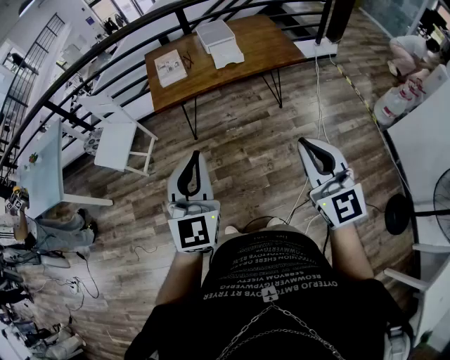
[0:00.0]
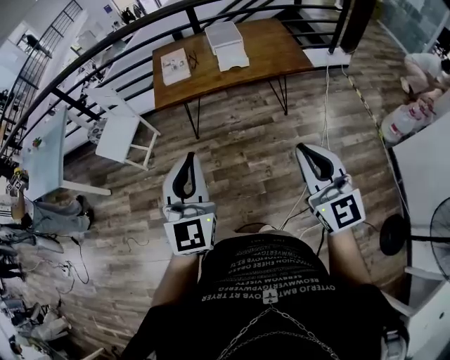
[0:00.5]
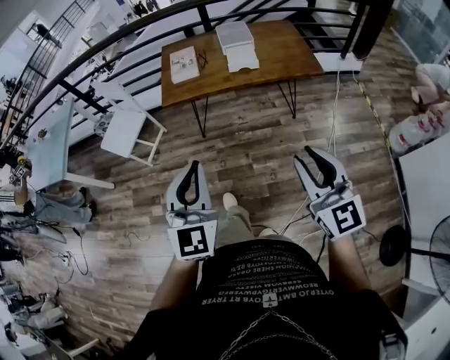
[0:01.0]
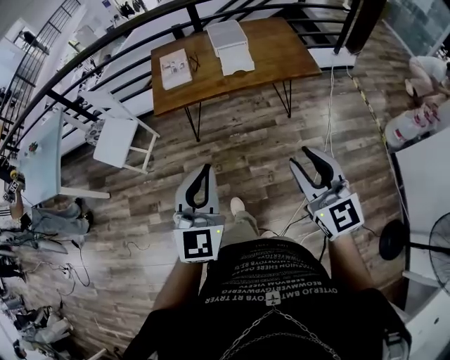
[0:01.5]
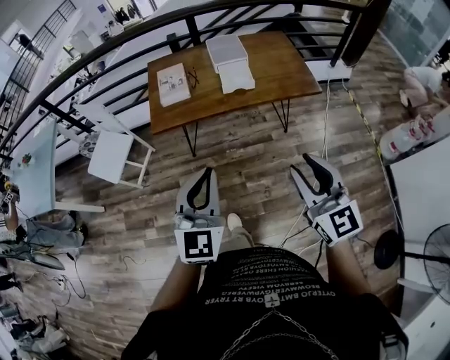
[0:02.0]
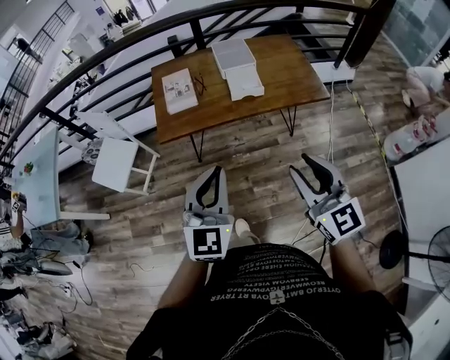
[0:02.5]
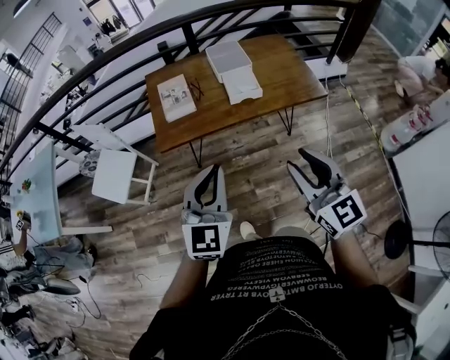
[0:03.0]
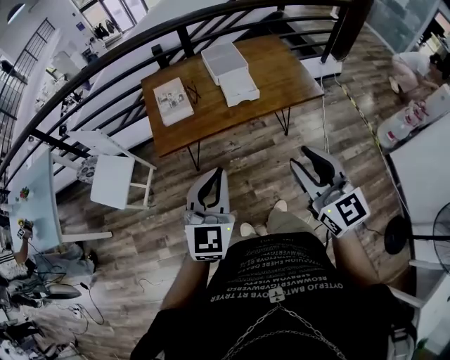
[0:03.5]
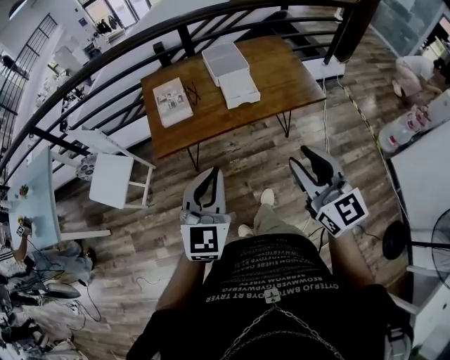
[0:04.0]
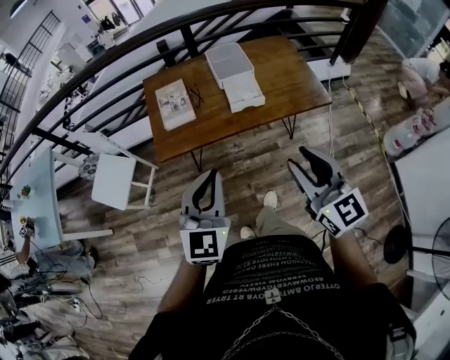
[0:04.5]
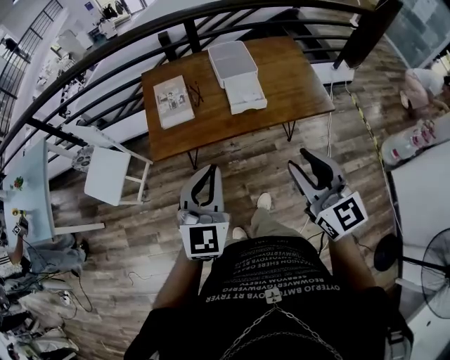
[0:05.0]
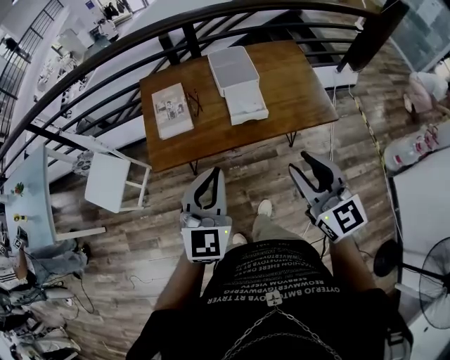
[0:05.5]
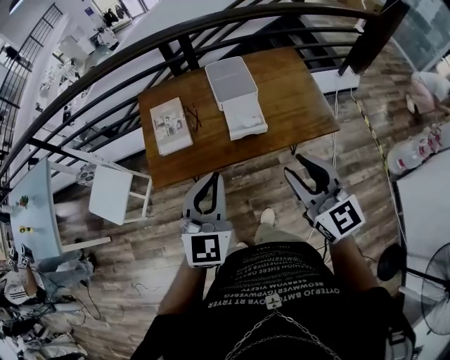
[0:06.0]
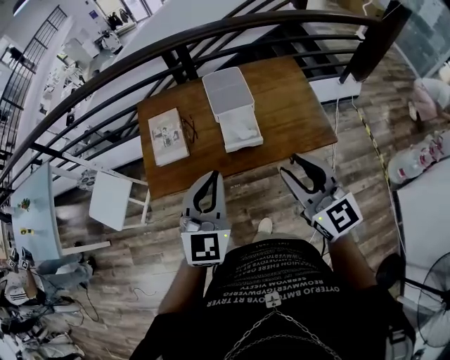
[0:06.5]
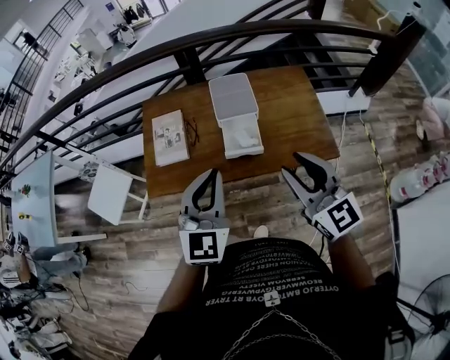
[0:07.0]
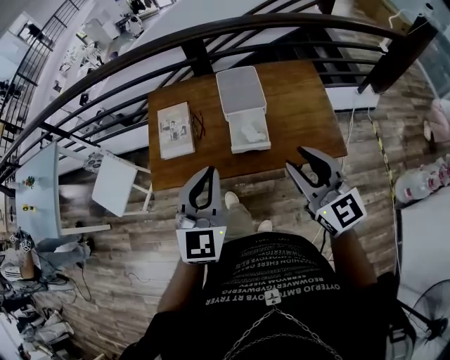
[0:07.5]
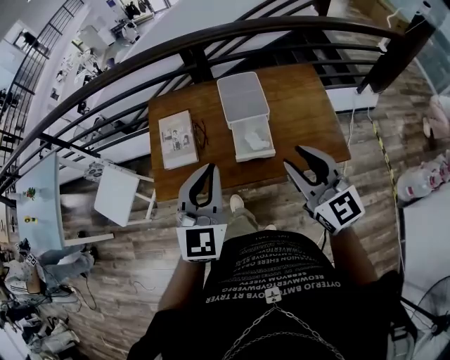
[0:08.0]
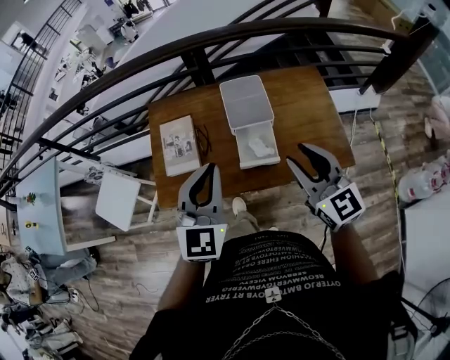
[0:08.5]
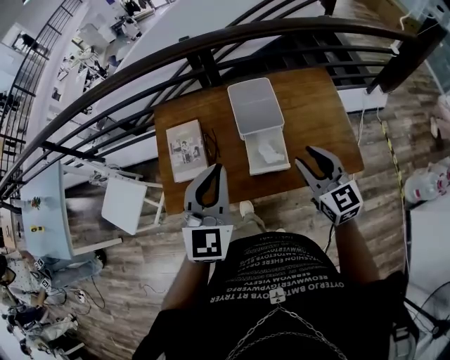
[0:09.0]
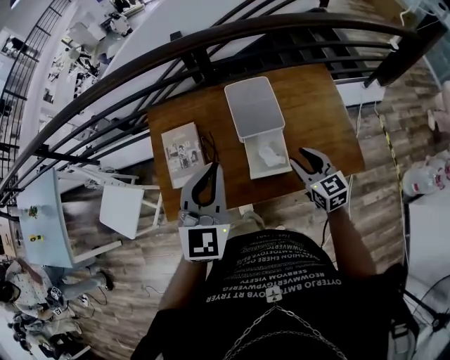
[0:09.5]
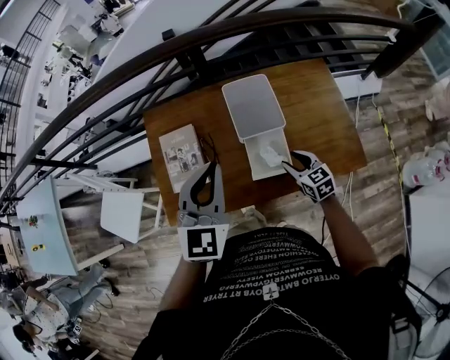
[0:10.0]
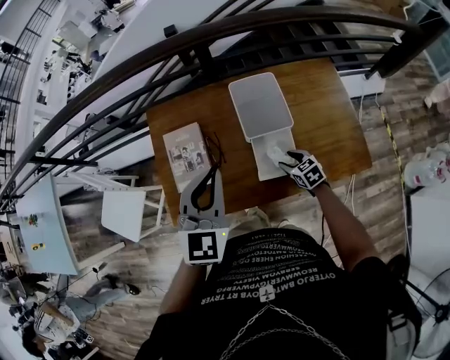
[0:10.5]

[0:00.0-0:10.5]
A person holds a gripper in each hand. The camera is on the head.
0.0 to 2.0 s: The left gripper heads forward and to the right, covering roughly 20 cm. Meanwhile the right gripper heads forward, covering approximately 20 cm, and opens its fingers.
2.0 to 4.0 s: The left gripper is displaced forward by approximately 10 cm, while the right gripper goes about 15 cm forward and to the left.
4.0 to 6.5 s: The right gripper goes about 25 cm forward, while the left gripper travels forward and to the right by approximately 25 cm.
6.5 to 8.5 s: Both grippers travel together forward, roughly 15 cm.
8.5 to 10.5 s: The right gripper heads downward, covering approximately 35 cm, and tilts its fingers roughly 40 degrees downward. The left gripper goes approximately 15 cm forward.

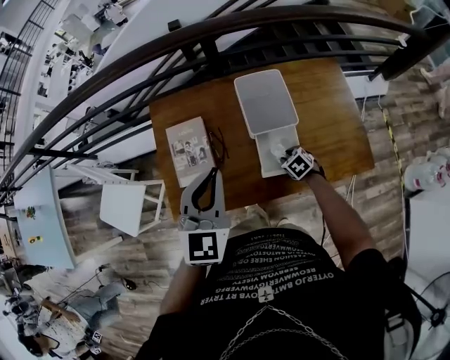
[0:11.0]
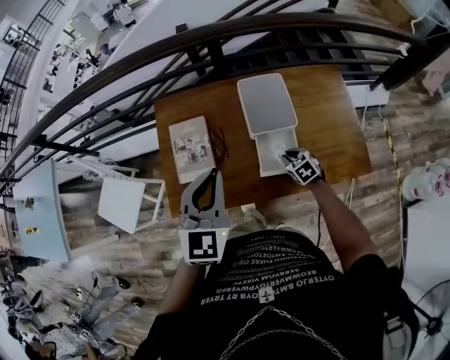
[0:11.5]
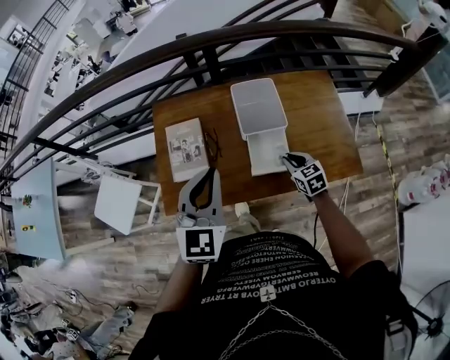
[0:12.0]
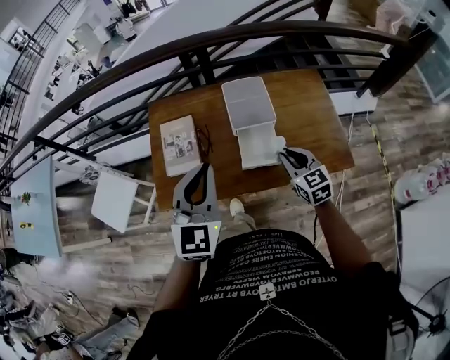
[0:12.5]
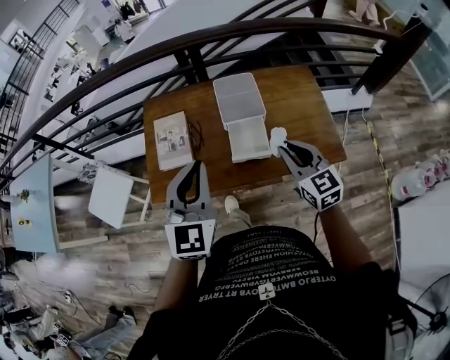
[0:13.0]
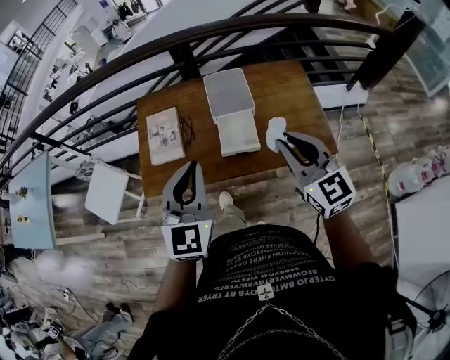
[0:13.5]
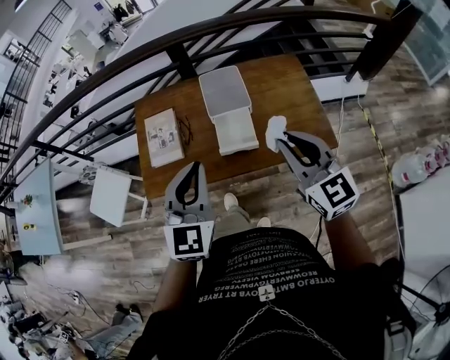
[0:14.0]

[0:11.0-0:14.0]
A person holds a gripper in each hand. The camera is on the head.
11.0 to 12.5 s: The right gripper goes approximately 25 cm upward and backward, and tips its fingers upward by some 40 degrees. Meanwhile the left gripper shifts about 10 cm backward.
12.5 to 14.0 s: The right gripper is displaced upward and backward by some 20 cm, and changes its angle by roughly 20 degrees; the left gripper moves backward and to the right, approximately 10 cm.

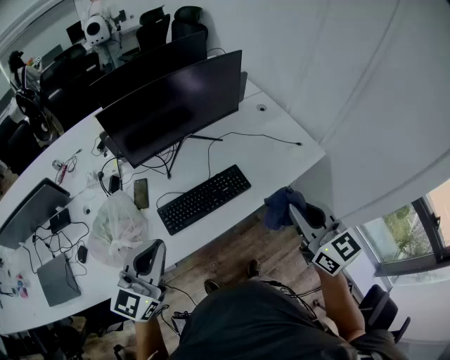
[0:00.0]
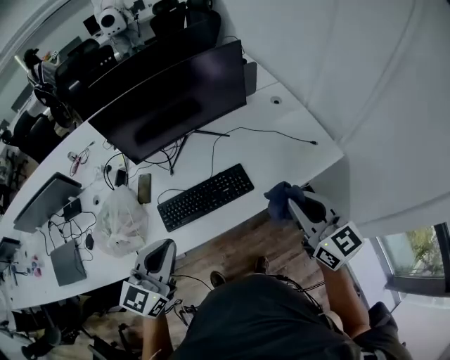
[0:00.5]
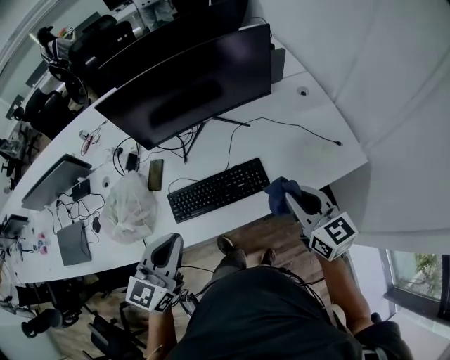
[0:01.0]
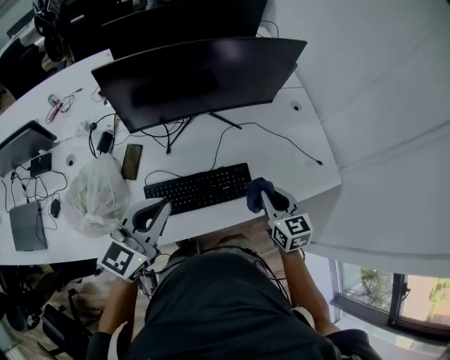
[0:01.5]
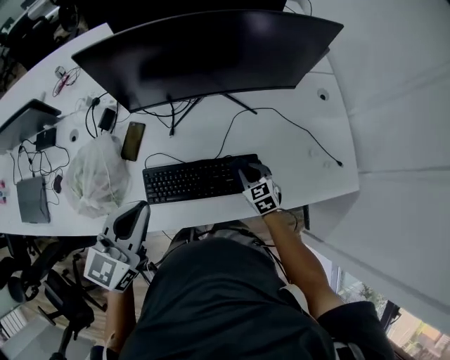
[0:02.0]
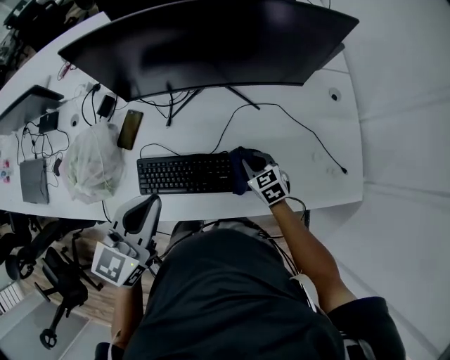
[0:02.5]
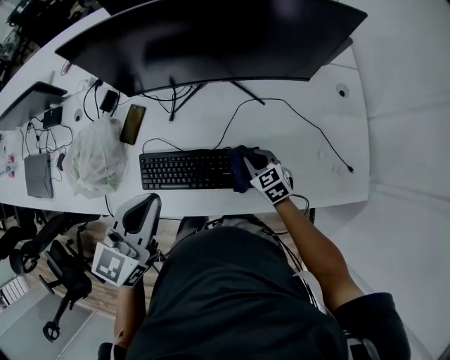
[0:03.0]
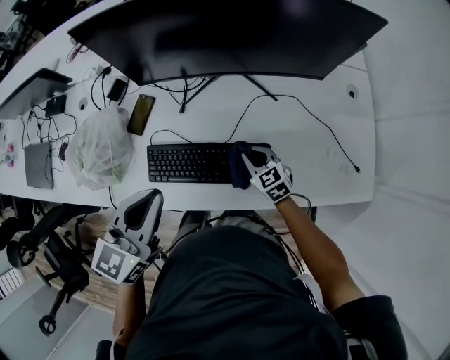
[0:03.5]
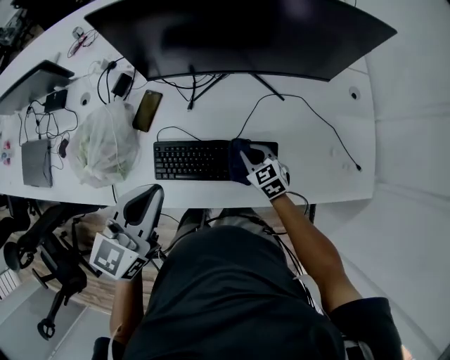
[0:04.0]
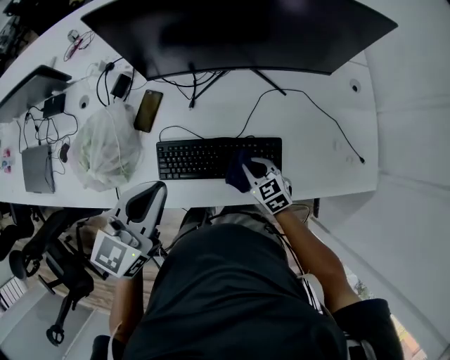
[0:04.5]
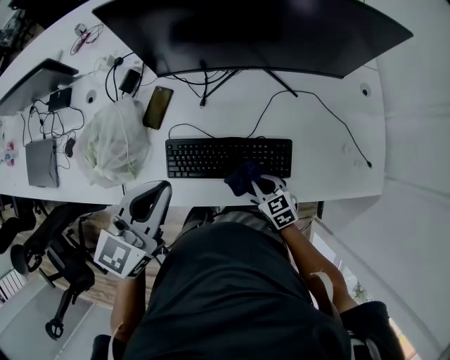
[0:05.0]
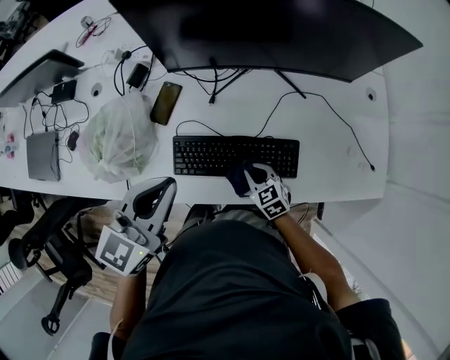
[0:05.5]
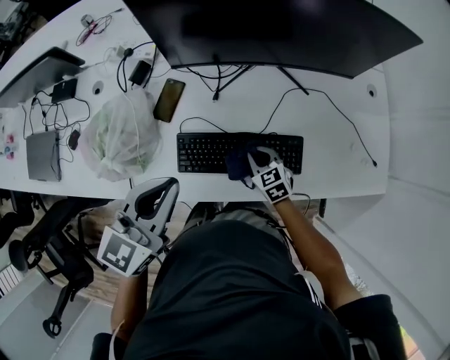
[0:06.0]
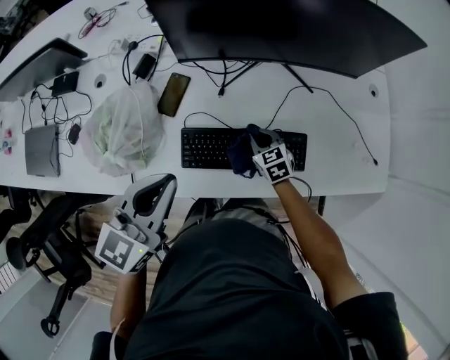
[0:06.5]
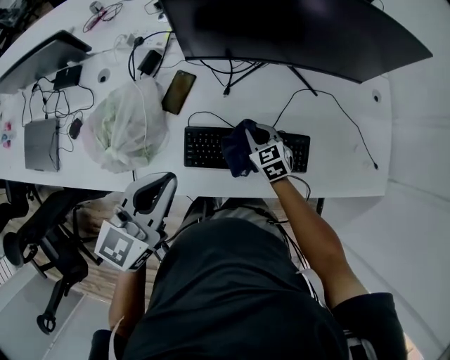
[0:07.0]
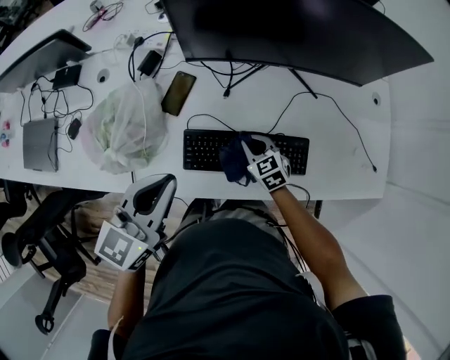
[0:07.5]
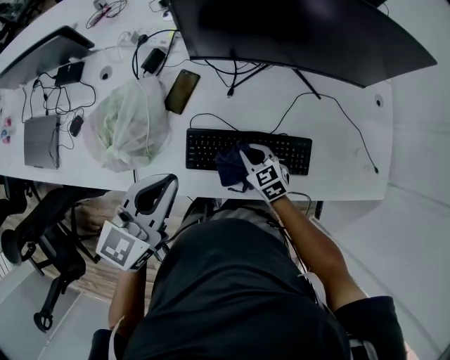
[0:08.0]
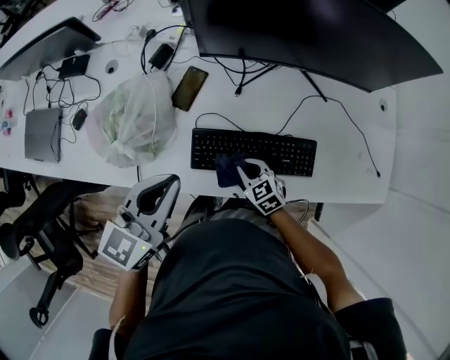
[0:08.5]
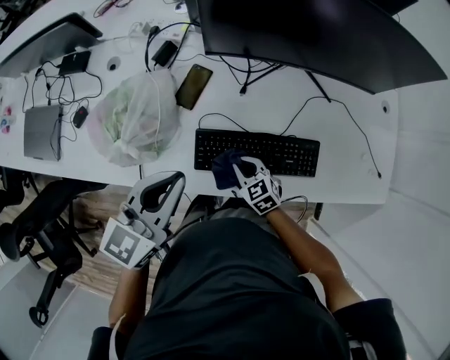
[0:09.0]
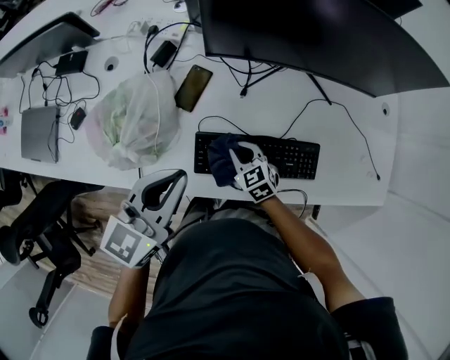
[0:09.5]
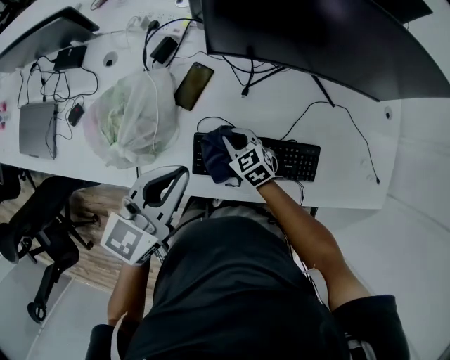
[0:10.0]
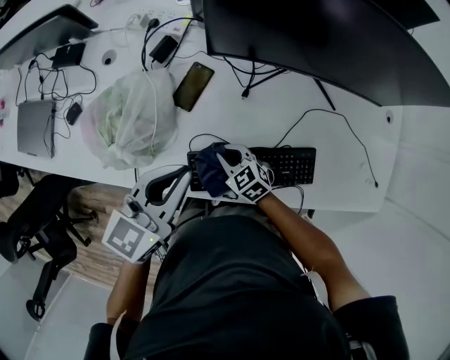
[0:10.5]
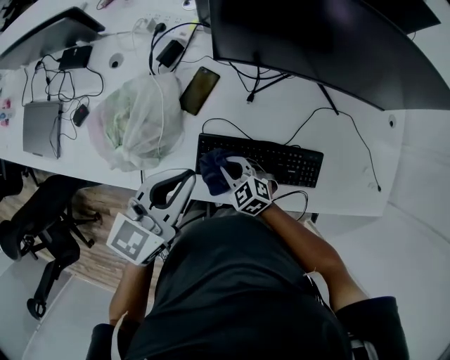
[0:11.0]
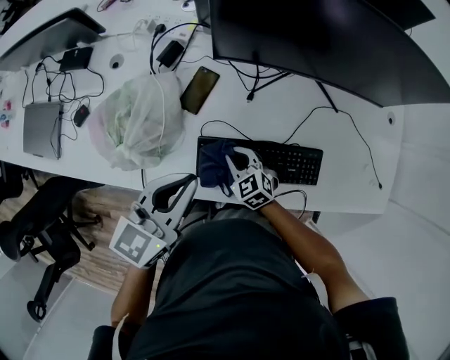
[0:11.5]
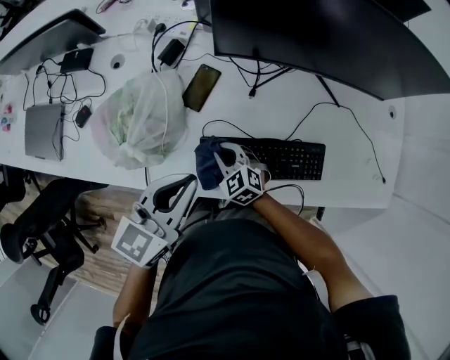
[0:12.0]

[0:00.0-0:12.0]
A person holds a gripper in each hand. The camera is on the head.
0.0 to 2.0 s: The right gripper moves downward and forward, approximately 50 cm, and tilts its fingers approximately 40 degrees downward. Meanwhile the left gripper goes about 20 cm forward and downward, and turns by about 30 degrees.
2.0 to 4.0 s: The right gripper goes about 5 cm to the left.
4.0 to 6.0 s: The right gripper goes some 5 cm to the left, and goes backward and returns, some 10 cm each way.
6.0 to 8.0 s: The right gripper shifts roughly 5 cm to the left. The left gripper shifts by roughly 5 cm.
8.0 to 10.0 s: The right gripper travels to the left and forward by approximately 10 cm.
10.0 to 12.0 s: The right gripper shifts about 5 cm to the left.

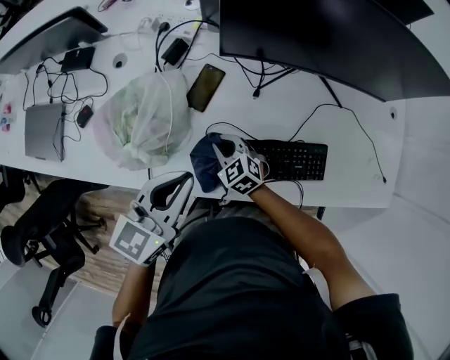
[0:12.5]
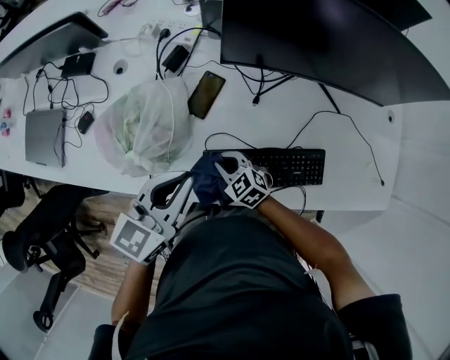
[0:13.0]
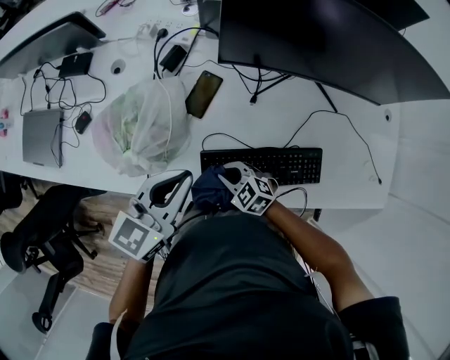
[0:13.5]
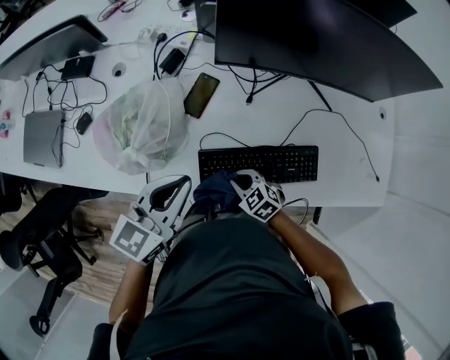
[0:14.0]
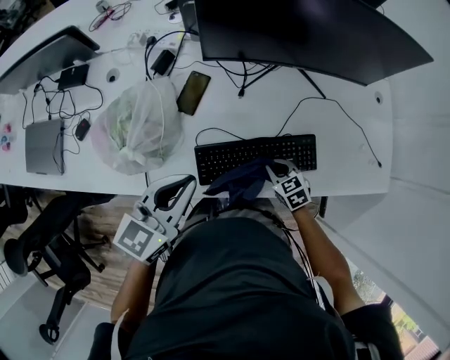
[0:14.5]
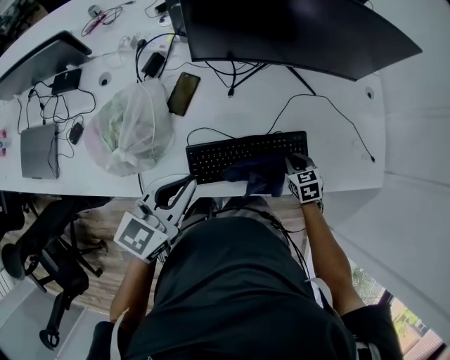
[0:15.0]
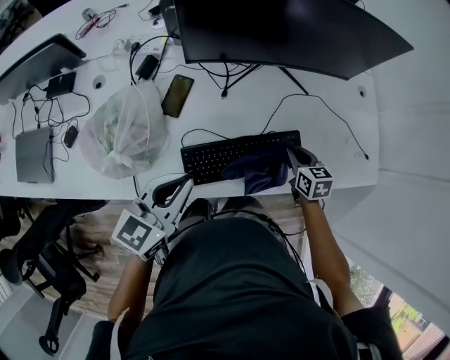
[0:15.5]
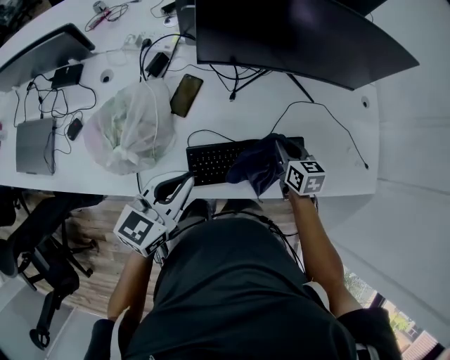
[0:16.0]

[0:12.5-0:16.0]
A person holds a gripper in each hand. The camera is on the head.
12.5 to 14.5 s: The right gripper heads to the right and backward, covering about 20 cm, and turns by roughly 20 degrees.
14.5 to 16.0 s: The right gripper travels upward and forward by approximately 15 cm, and swivels some 30 degrees.
